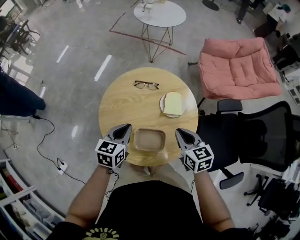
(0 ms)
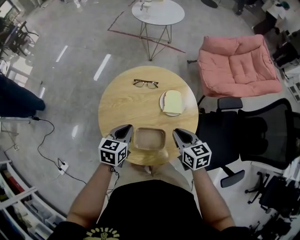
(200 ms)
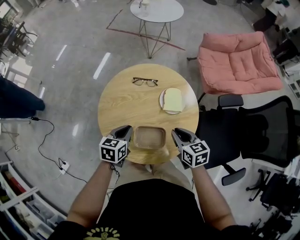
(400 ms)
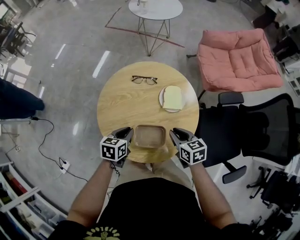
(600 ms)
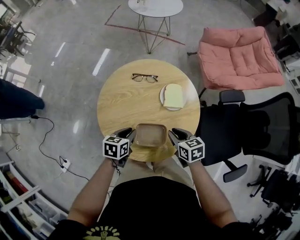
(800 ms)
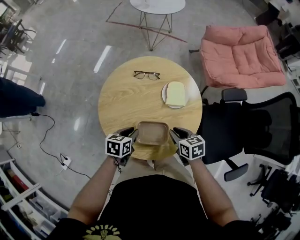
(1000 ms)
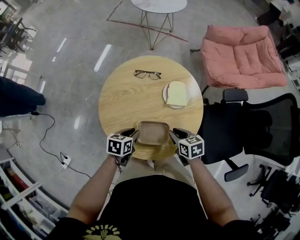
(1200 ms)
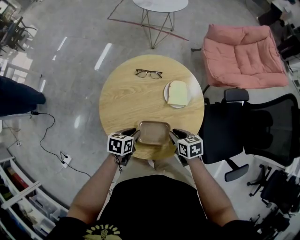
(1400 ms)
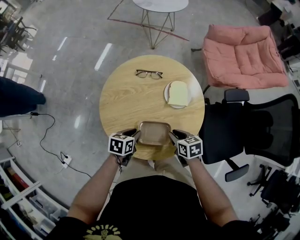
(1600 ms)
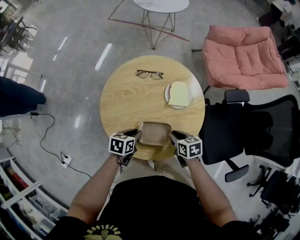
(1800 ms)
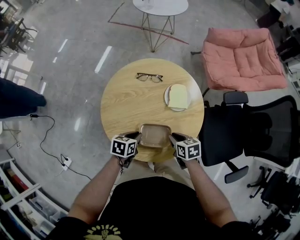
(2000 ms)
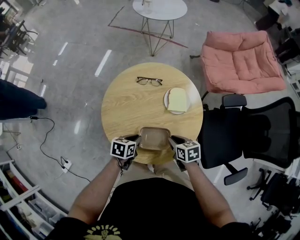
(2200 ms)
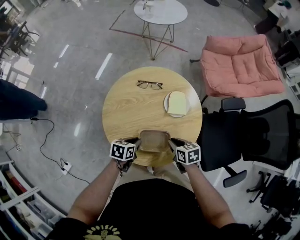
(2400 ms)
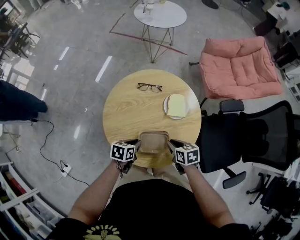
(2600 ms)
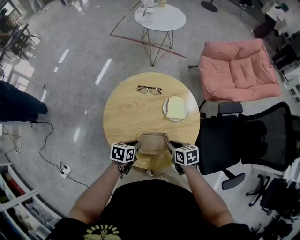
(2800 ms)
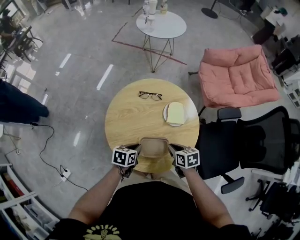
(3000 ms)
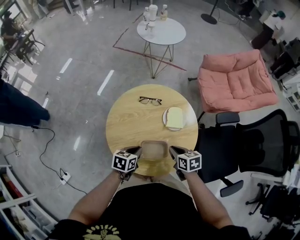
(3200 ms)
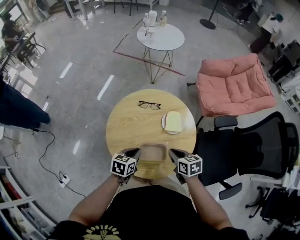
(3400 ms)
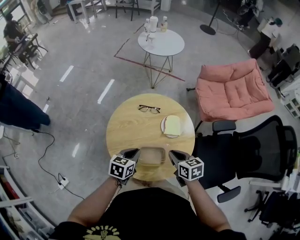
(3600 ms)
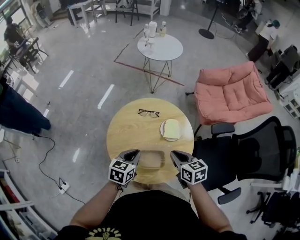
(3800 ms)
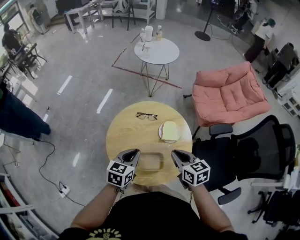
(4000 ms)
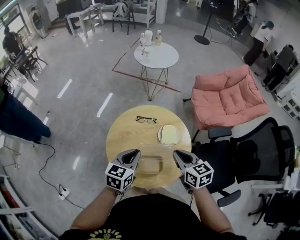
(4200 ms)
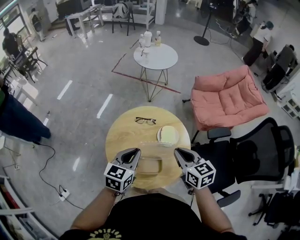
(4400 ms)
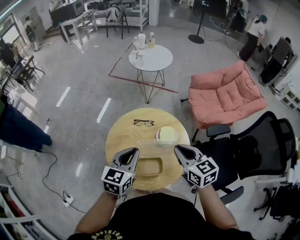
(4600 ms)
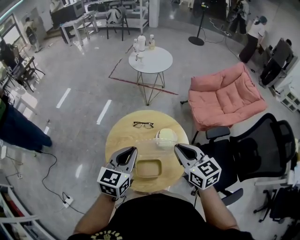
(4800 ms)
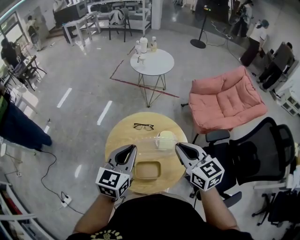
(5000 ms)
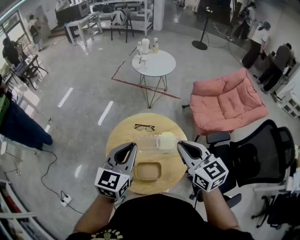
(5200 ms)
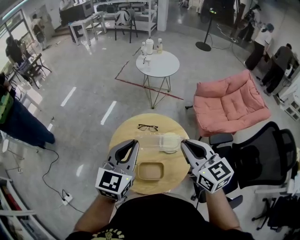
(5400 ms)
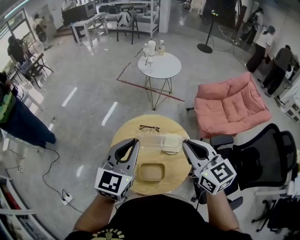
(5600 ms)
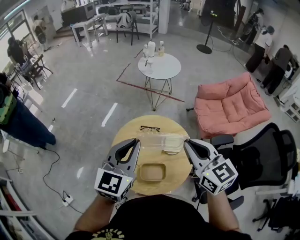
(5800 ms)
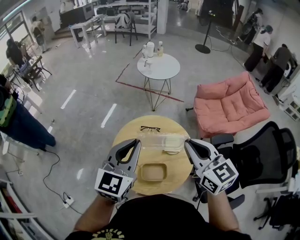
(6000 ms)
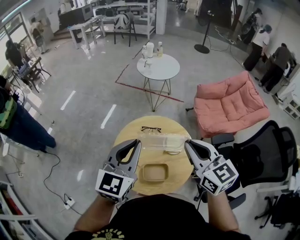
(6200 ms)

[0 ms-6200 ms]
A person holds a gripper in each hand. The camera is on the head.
0 ms to 1600 ms: Both grippers move downward, about 15 cm. The left gripper rotates roughly 30 degrees, and opens; the right gripper changes its angle by roughly 20 degrees.
1600 ms to 3200 ms: Both grippers move upward, approximately 5 cm.
3200 ms to 4600 ms: The two grippers go roughly 25 cm upward. The right gripper changes its angle by roughly 30 degrees. The left gripper turns by approximately 30 degrees.
4600 ms to 6200 ms: The two grippers go approximately 15 cm upward.

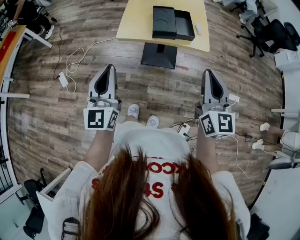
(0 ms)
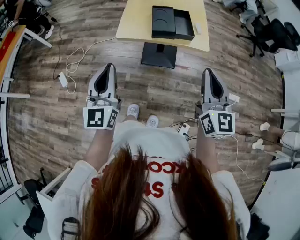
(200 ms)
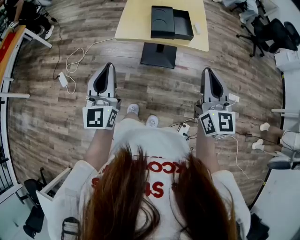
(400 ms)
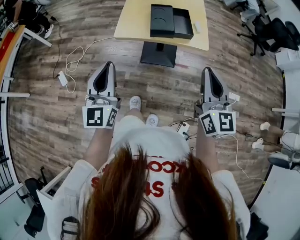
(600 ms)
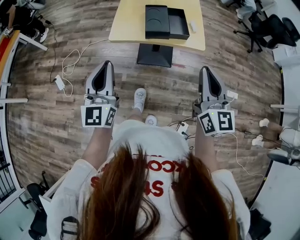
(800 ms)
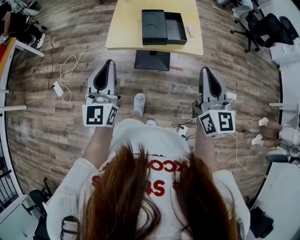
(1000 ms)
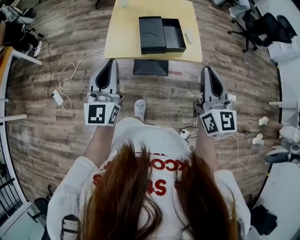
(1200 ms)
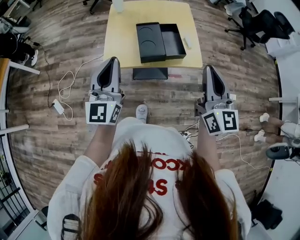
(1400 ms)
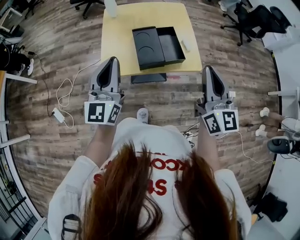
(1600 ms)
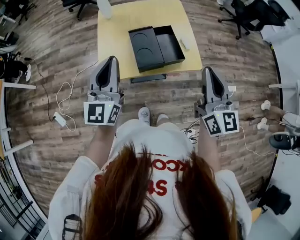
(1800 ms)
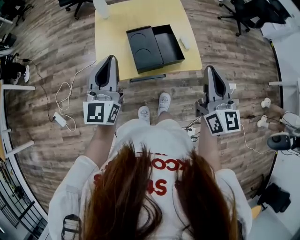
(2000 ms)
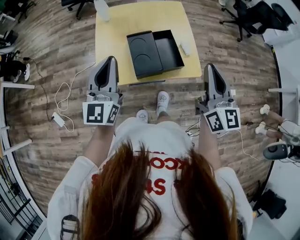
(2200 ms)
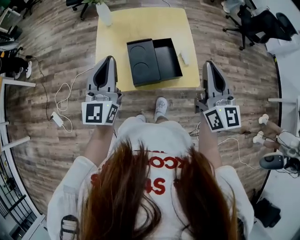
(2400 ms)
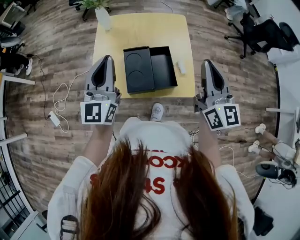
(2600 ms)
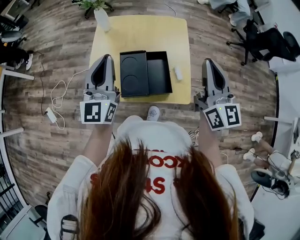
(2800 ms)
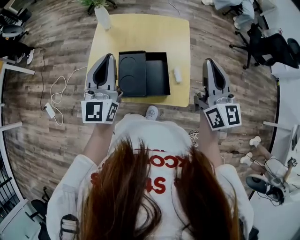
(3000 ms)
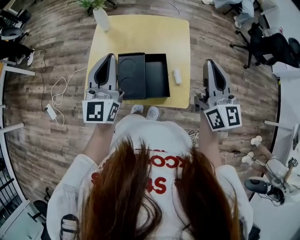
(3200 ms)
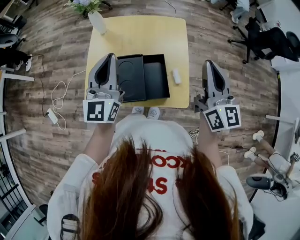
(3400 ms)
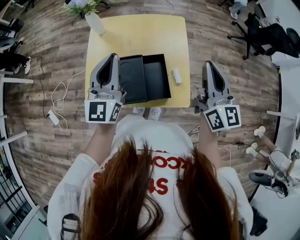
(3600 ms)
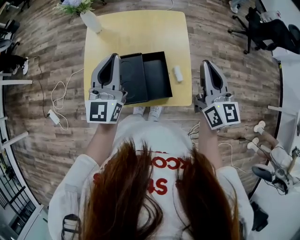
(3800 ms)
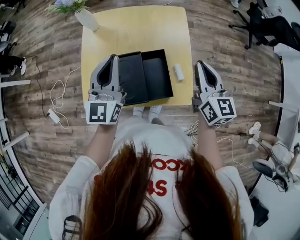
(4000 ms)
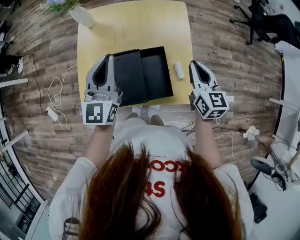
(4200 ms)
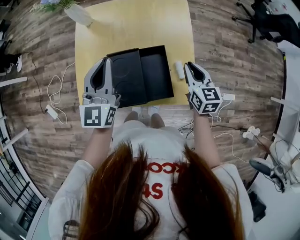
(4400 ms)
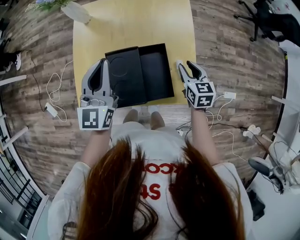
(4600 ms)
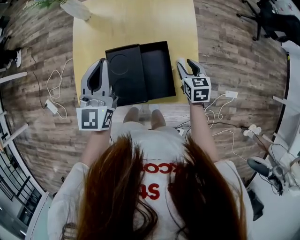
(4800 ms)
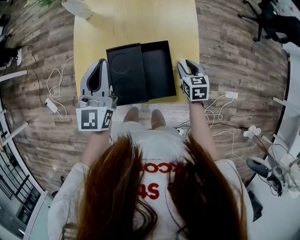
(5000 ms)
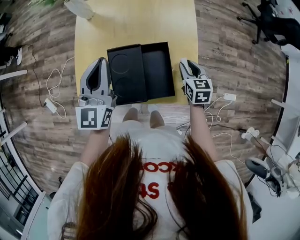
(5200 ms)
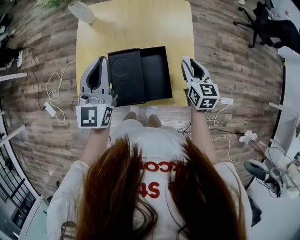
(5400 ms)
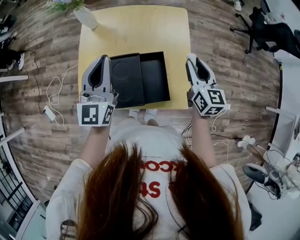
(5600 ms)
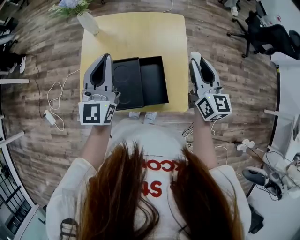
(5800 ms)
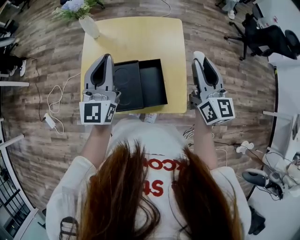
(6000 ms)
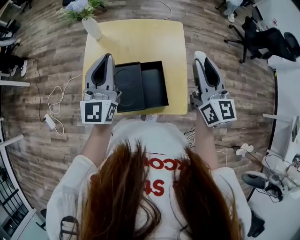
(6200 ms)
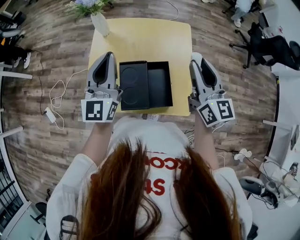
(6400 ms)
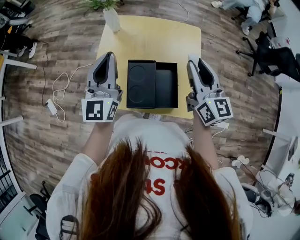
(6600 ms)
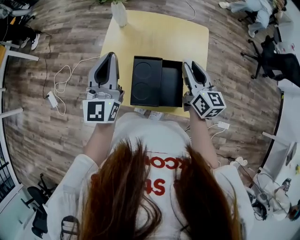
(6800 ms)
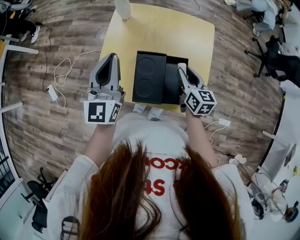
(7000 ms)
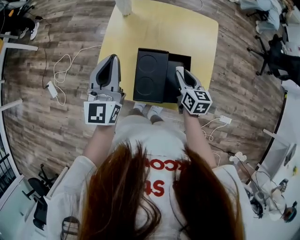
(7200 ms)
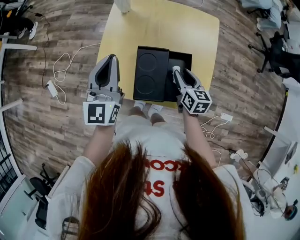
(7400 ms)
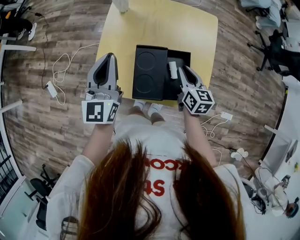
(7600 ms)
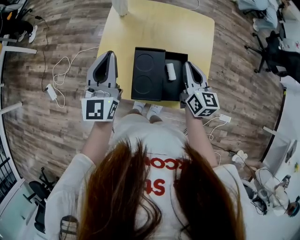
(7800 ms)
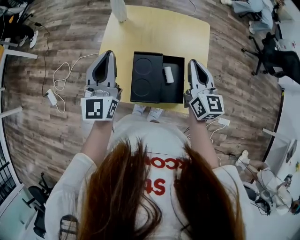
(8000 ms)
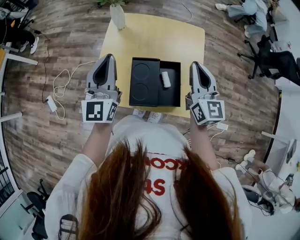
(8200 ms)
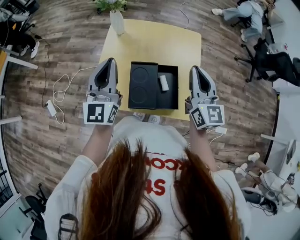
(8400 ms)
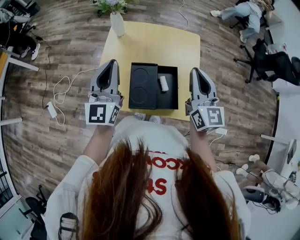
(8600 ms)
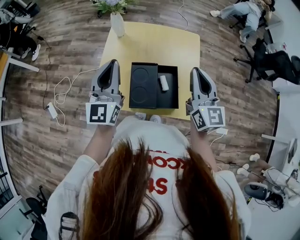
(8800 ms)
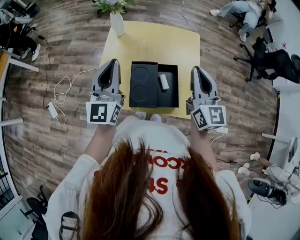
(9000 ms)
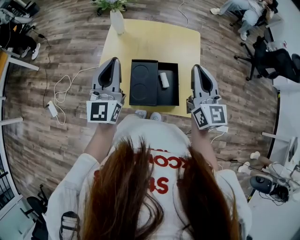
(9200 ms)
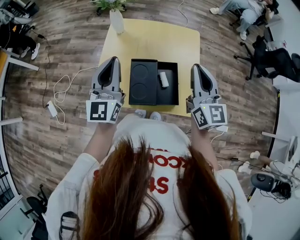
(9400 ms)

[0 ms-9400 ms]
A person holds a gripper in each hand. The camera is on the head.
0 ms to 1600 ms: Both grippers travel together forward, about 20 cm.
1600 ms to 3200 ms: The left gripper shifts some 20 cm forward and to the right. The right gripper shifts some 25 cm forward.
3200 ms to 4800 ms: The left gripper shifts some 10 cm downward. Meanwhile the right gripper heads downward, covering about 35 cm, tilts its fingers roughly 50 degrees downward, and opens up.
4800 ms to 6200 ms: The right gripper shifts roughly 30 cm upward, and points its fingers some 50 degrees further upward; the left gripper goes some 10 cm upward.
6200 ms to 7800 ms: The left gripper goes about 10 cm to the left and downward. Meanwhile the right gripper moves downward and to the left, about 20 cm, rotates approximately 20 degrees, and closes its fingers.
7800 ms to 9400 ms: The left gripper moves some 5 cm. Meanwhile the right gripper shifts approximately 15 cm upward, and changes its angle by about 20 degrees.

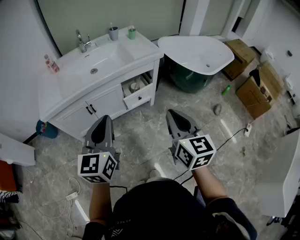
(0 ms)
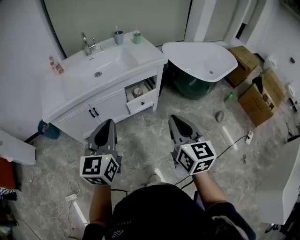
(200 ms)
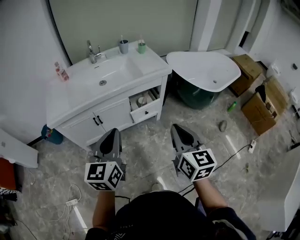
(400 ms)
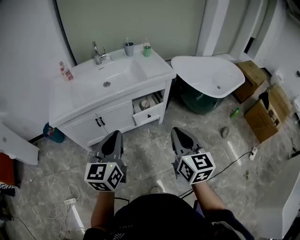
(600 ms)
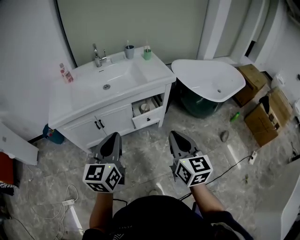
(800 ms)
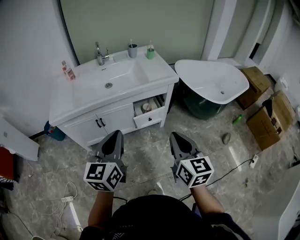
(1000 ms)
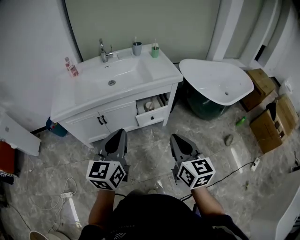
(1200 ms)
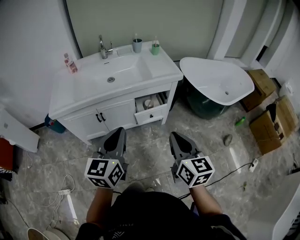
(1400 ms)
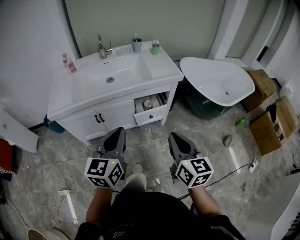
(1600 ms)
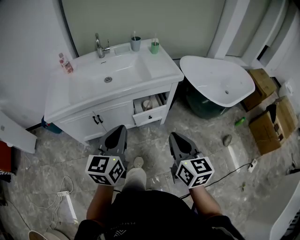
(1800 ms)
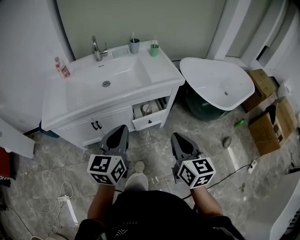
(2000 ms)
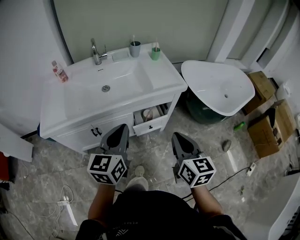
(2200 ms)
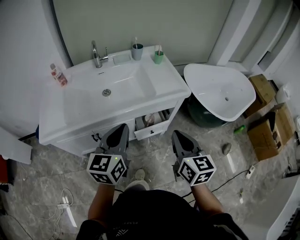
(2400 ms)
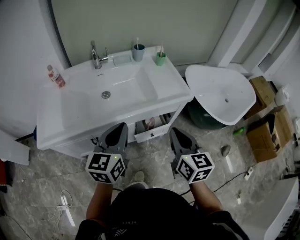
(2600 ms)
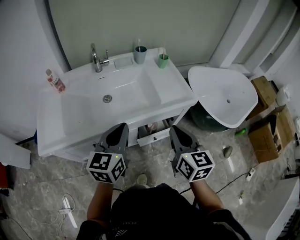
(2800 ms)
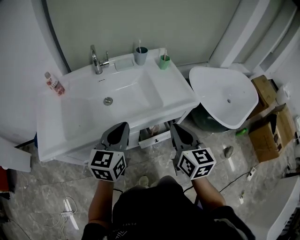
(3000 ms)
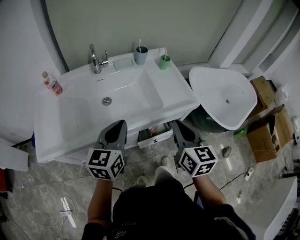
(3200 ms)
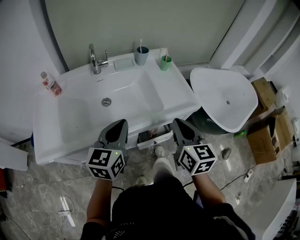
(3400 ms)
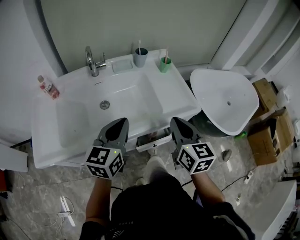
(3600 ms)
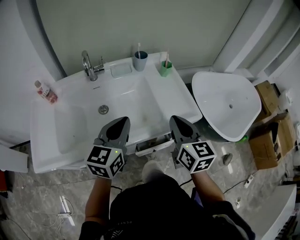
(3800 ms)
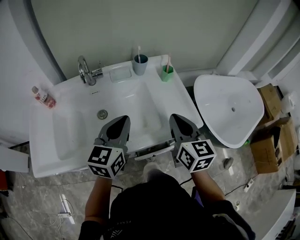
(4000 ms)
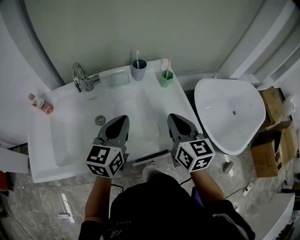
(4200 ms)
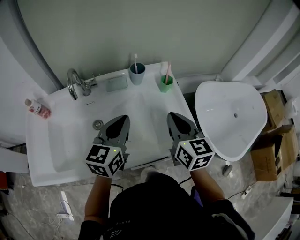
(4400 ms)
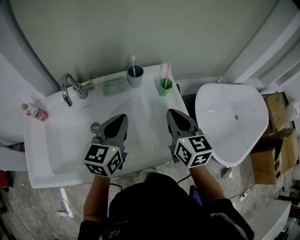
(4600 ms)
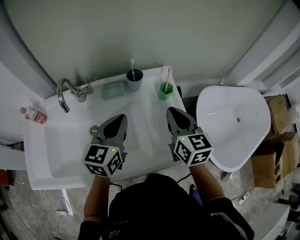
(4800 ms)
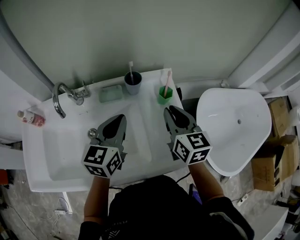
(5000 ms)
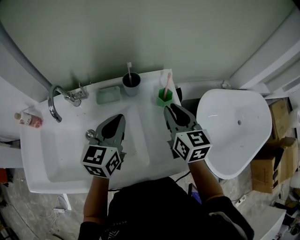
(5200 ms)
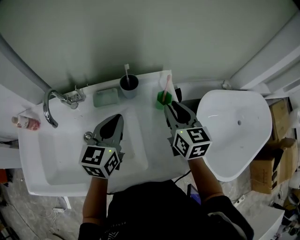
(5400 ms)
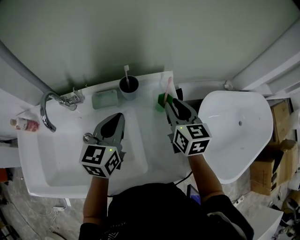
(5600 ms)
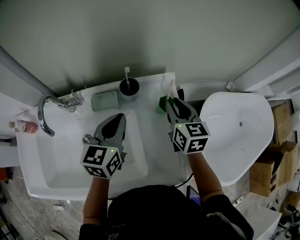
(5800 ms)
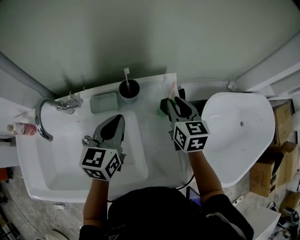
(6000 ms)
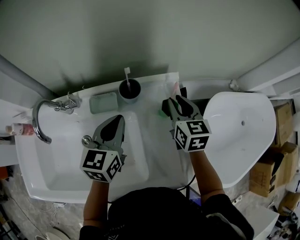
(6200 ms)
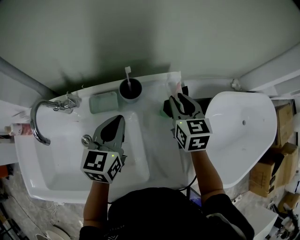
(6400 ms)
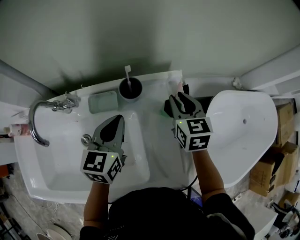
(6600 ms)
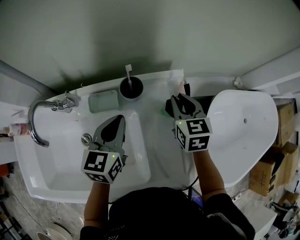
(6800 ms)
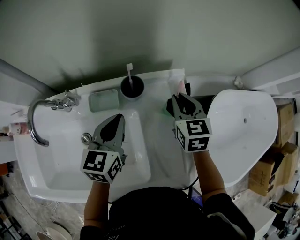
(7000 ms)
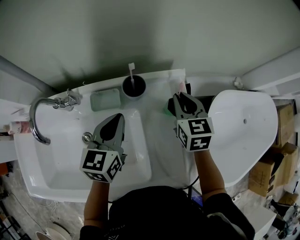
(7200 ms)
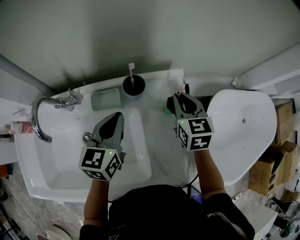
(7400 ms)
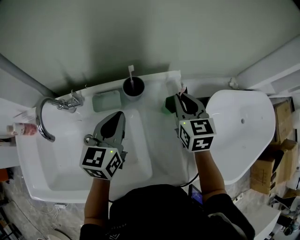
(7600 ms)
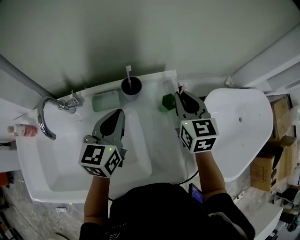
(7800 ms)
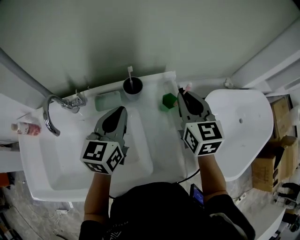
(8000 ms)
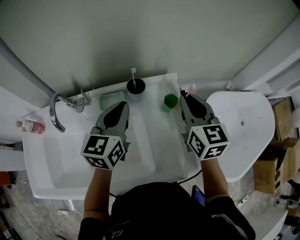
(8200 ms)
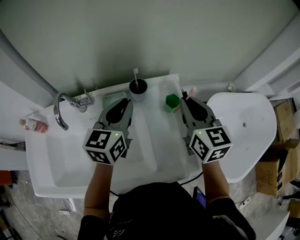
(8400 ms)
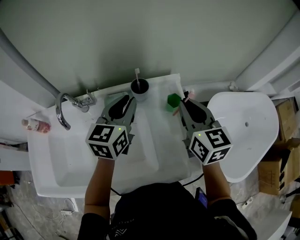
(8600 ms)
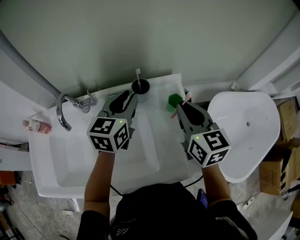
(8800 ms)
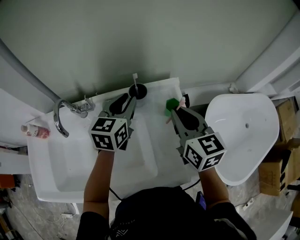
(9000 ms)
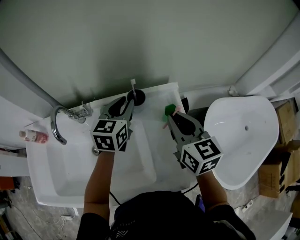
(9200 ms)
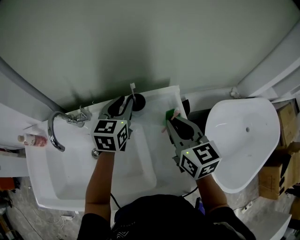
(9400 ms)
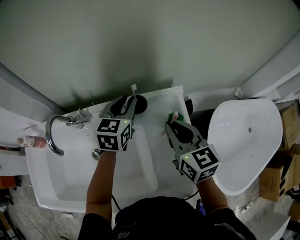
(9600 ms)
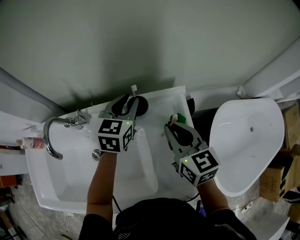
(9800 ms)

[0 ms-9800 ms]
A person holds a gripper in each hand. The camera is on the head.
0 ms to 1400 ms: The right gripper moves forward, about 5 cm. The left gripper moves roughly 5 cm.
1400 ms to 2800 ms: Both grippers travel together forward, about 30 cm.
2800 ms to 4200 ms: The grippers both shift forward by about 25 cm.
4200 ms to 5600 ms: Both grippers move forward, about 20 cm.
5600 ms to 7000 ms: The left gripper ends up approximately 5 cm from where it was. Meanwhile the right gripper is displaced forward and downward by roughly 10 cm.
7000 ms to 8400 ms: The left gripper travels upward by about 10 cm, while the right gripper shifts roughly 15 cm upward and backward.
8400 ms to 9800 ms: The left gripper travels forward and downward by about 15 cm; the right gripper shifts some 10 cm downward.
